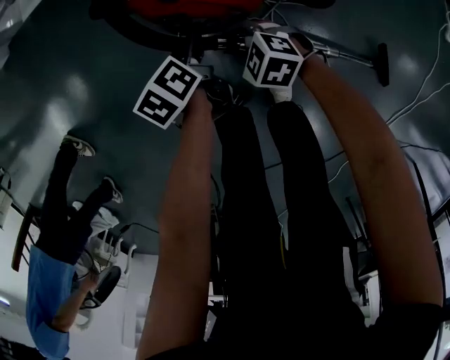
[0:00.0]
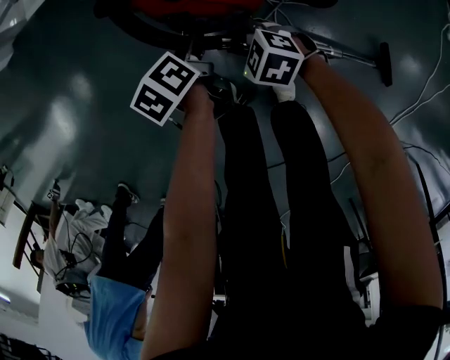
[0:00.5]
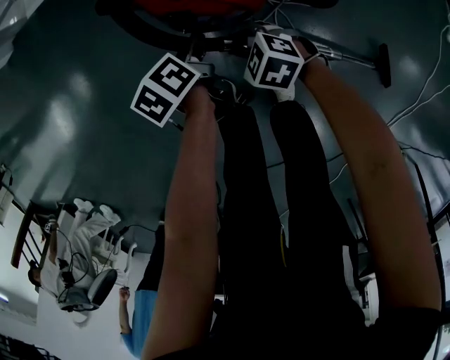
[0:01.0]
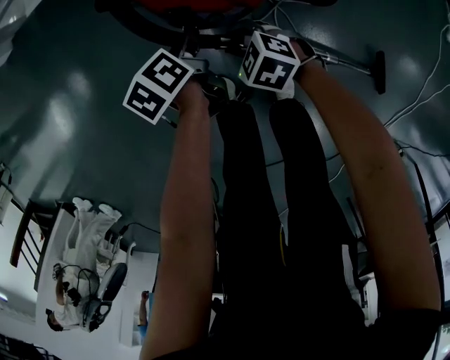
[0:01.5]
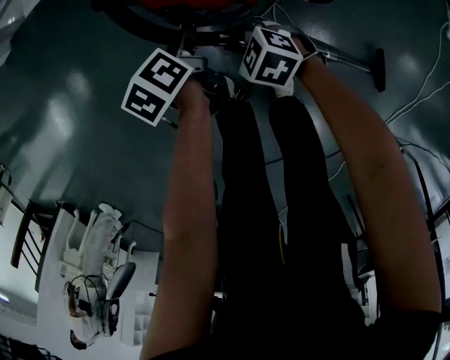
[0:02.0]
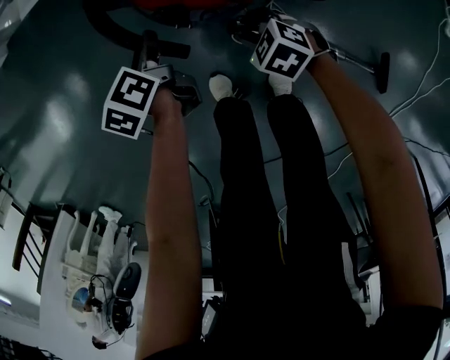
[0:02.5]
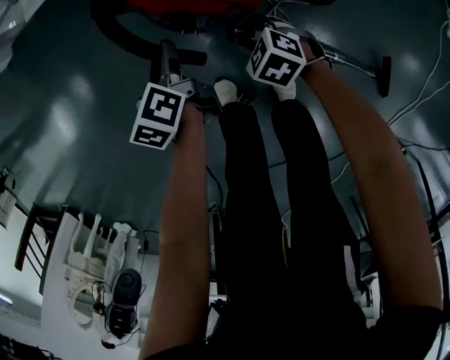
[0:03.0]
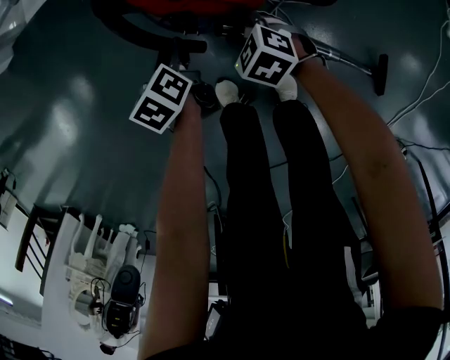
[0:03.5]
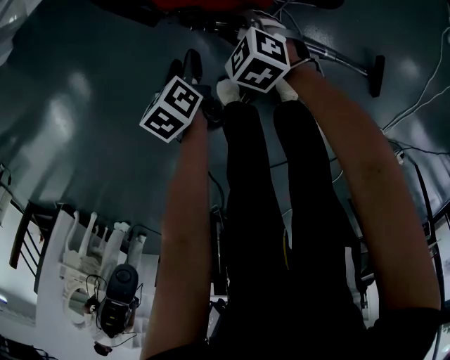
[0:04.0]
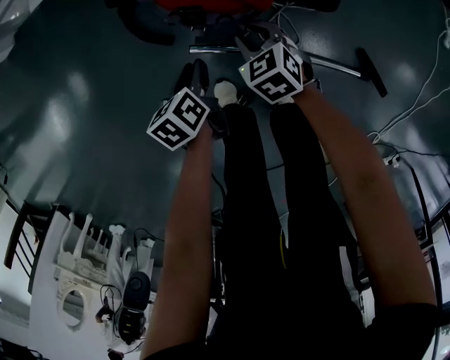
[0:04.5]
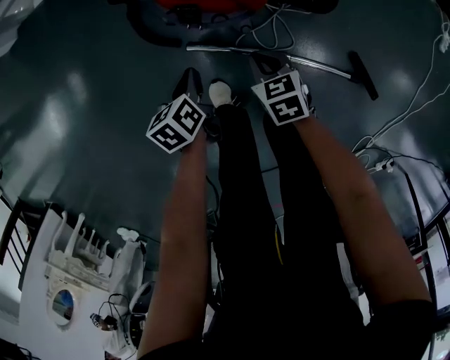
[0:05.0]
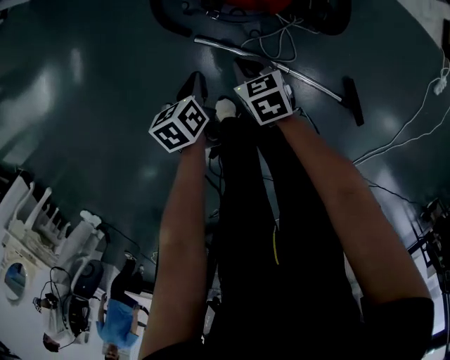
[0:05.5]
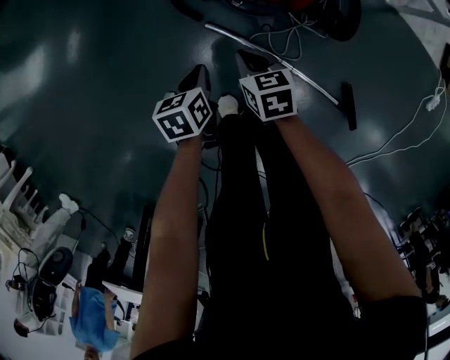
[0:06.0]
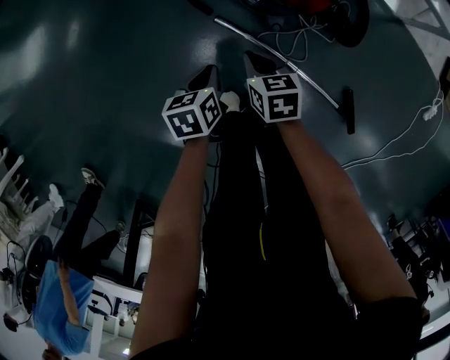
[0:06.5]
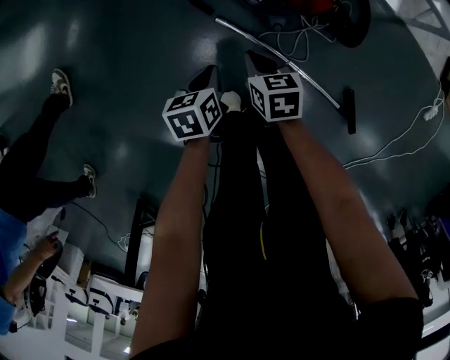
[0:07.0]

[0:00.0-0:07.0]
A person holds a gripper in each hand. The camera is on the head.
0:00.0 to 0:02.0: The grippers stay close to where they were, moving slightly.
0:03.5 to 0:05.0: The two grippers go some 10 cm backward. The left gripper closes up, while the right gripper swivels roughly 30 degrees, and closes its fingers.
0:05.0 to 0:07.0: The right gripper travels to the left by about 15 cm. The left gripper is displaced backward and to the left by about 15 cm.

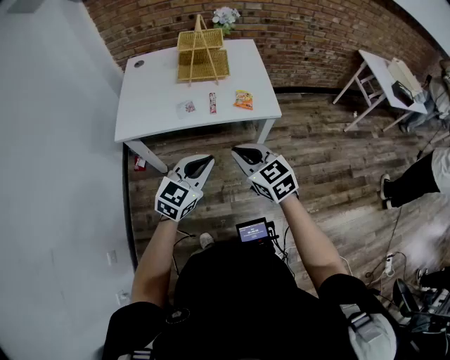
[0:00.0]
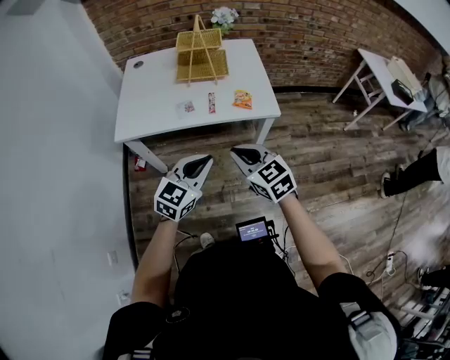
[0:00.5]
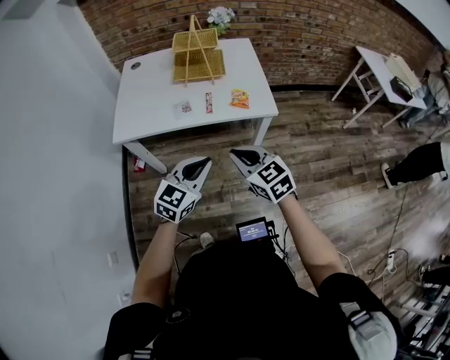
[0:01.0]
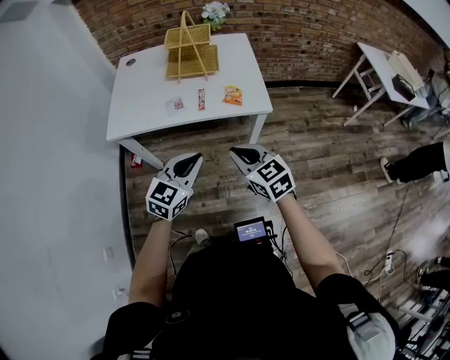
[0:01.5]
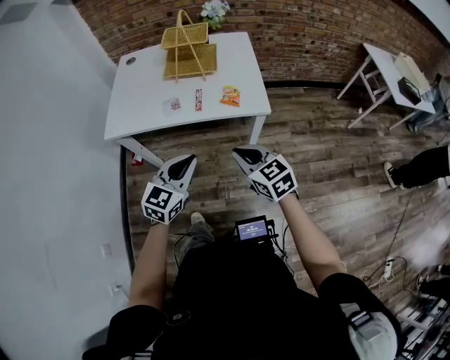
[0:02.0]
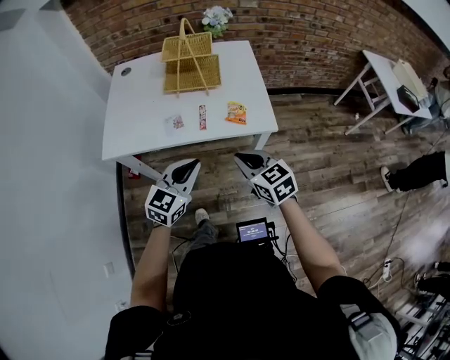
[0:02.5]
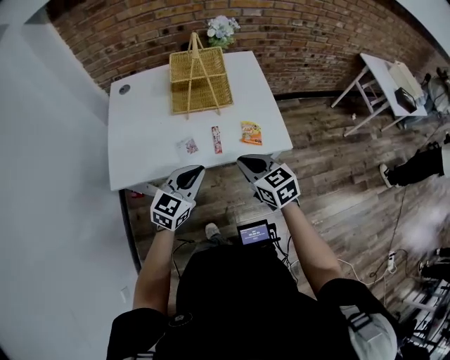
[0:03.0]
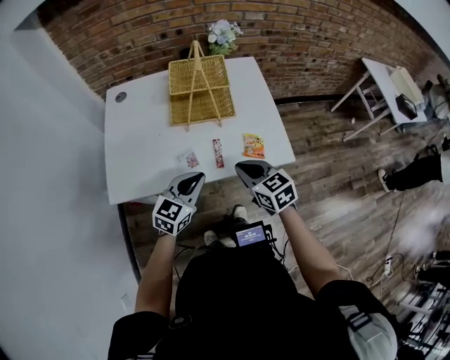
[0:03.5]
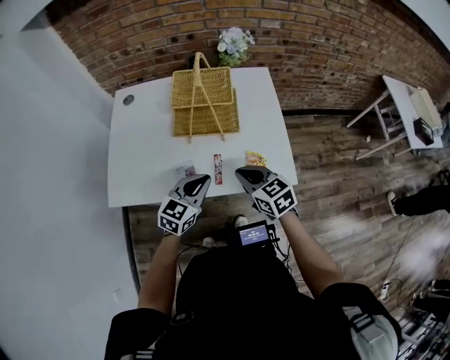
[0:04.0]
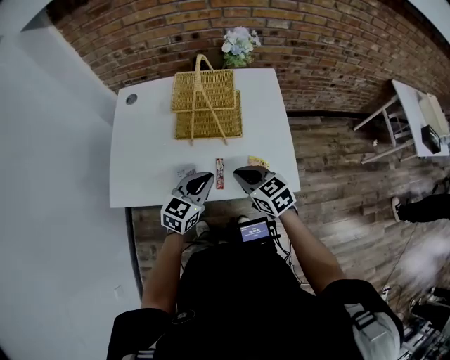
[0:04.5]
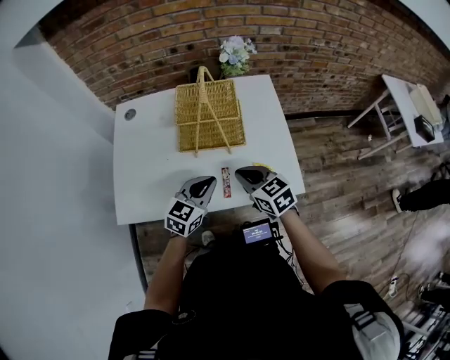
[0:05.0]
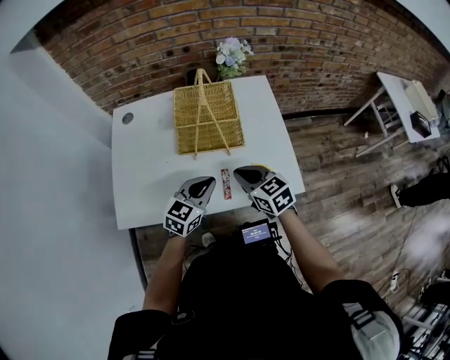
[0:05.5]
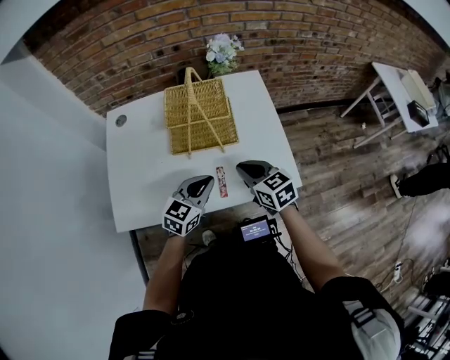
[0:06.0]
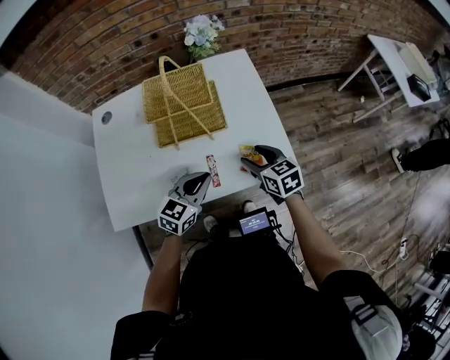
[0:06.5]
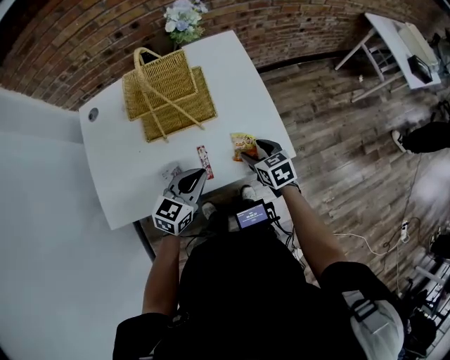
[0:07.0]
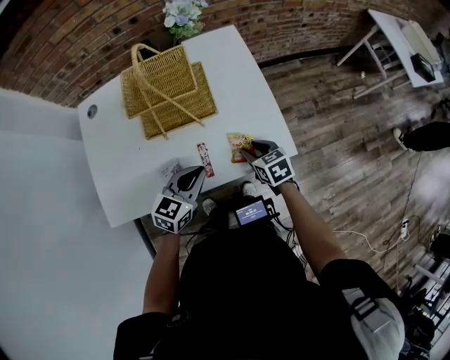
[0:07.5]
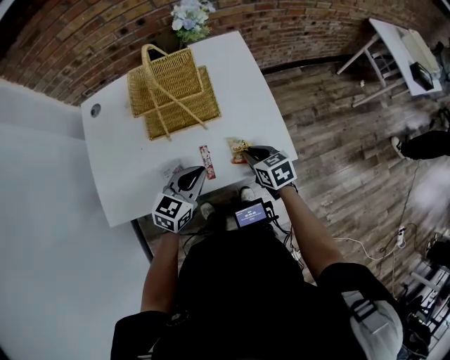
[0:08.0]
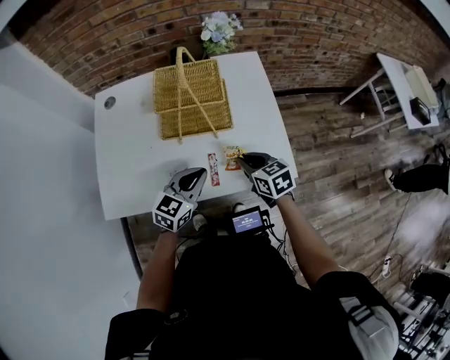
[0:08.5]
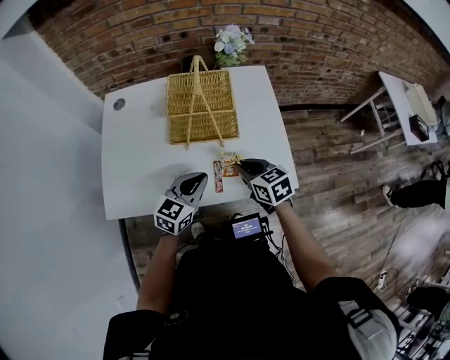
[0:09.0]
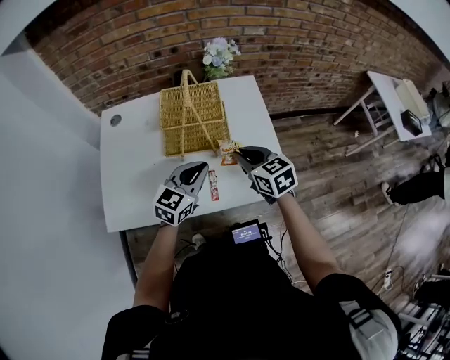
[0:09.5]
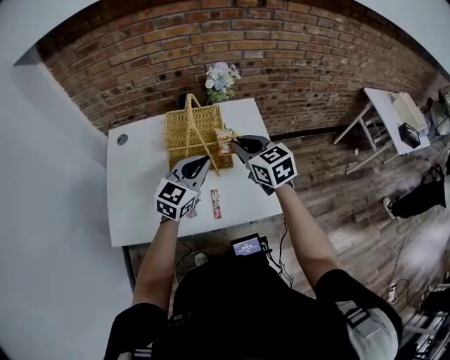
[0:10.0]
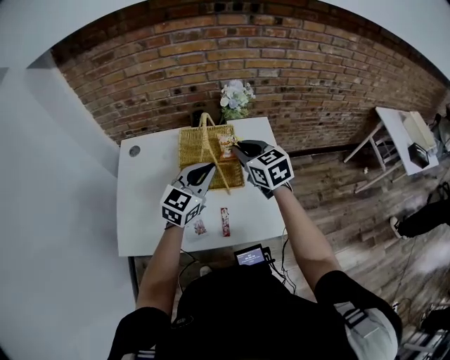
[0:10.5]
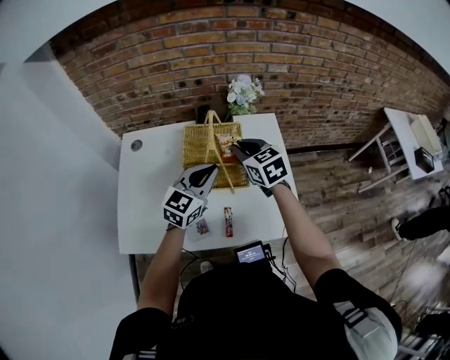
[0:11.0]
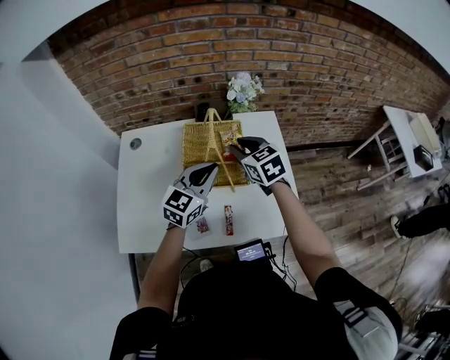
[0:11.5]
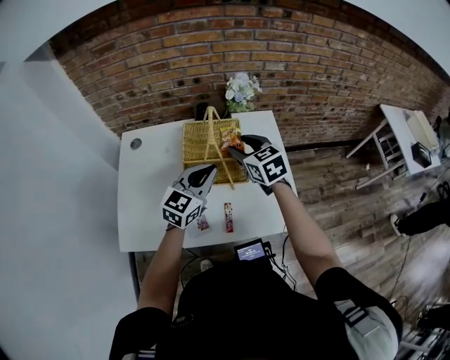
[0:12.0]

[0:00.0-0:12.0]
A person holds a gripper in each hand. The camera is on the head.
0:00.0 to 0:02.0: The right gripper moves to the right, roughly 10 cm.
0:02.0 to 0:04.0: Both grippers travel together forward, approximately 25 cm.
0:04.0 to 0:06.0: The right gripper moves forward, some 5 cm.
0:06.0 to 0:08.0: The right gripper heads downward and to the right, covering approximately 15 cm, and opens and closes again.
0:08.0 to 0:10.0: The grippers both shift upward and forward by some 20 cm. The left gripper rotates some 20 degrees. Meanwhile the right gripper changes its angle by some 30 degrees.
0:10.0 to 0:12.0: The right gripper is displaced forward and to the left by about 10 cm, and opens.

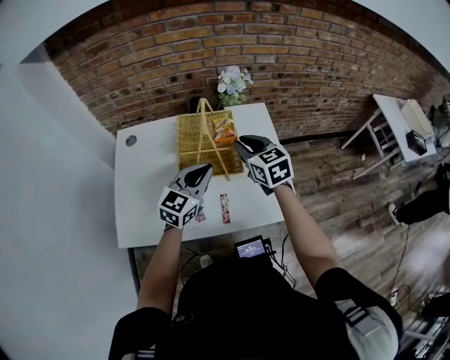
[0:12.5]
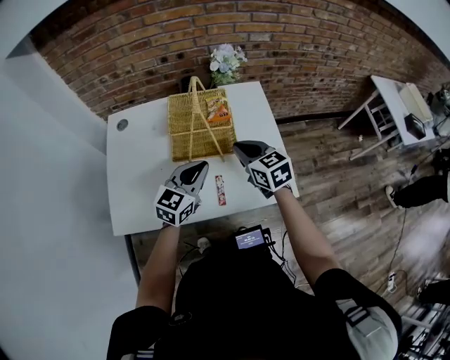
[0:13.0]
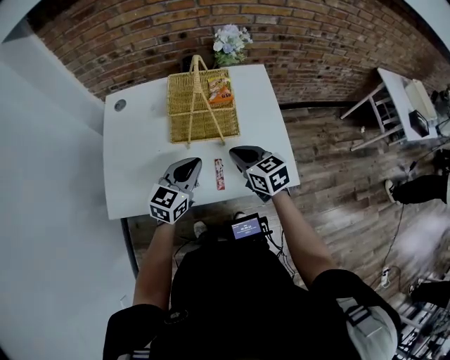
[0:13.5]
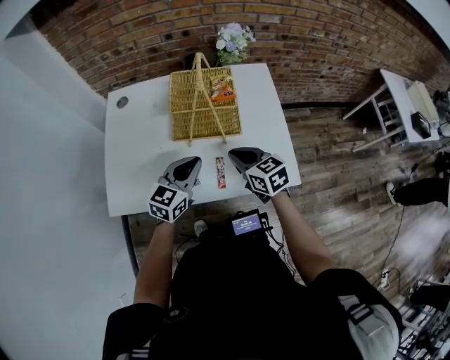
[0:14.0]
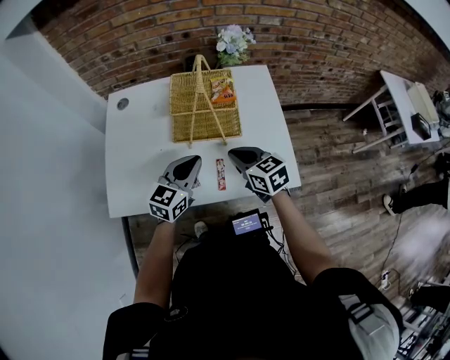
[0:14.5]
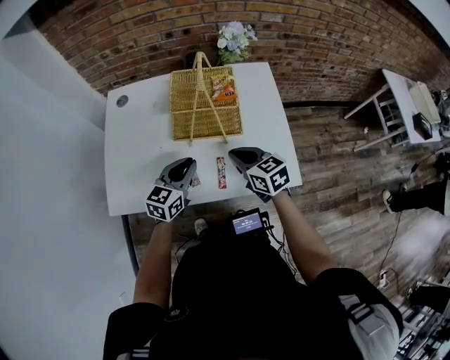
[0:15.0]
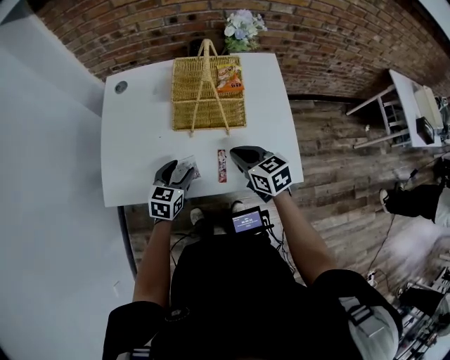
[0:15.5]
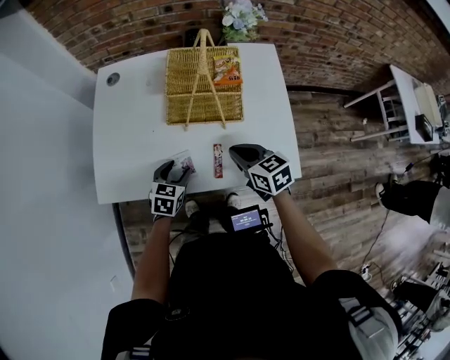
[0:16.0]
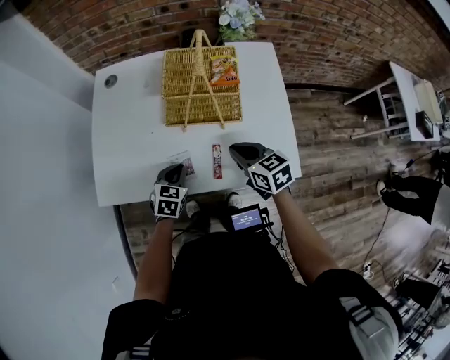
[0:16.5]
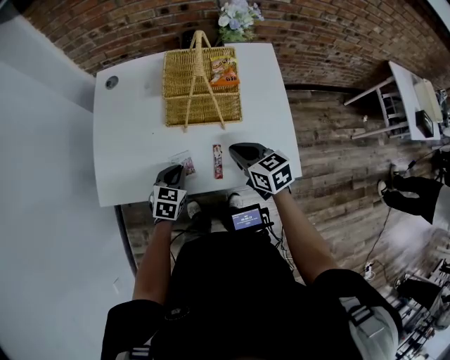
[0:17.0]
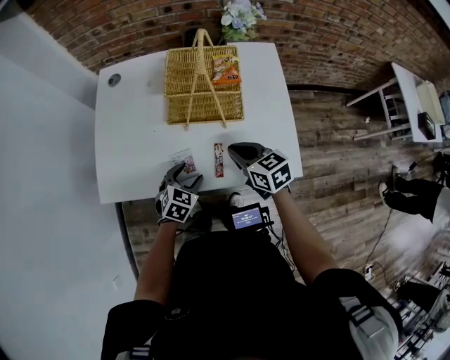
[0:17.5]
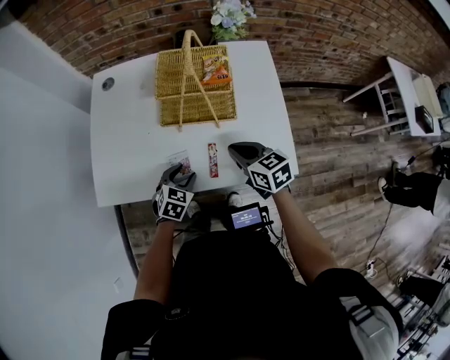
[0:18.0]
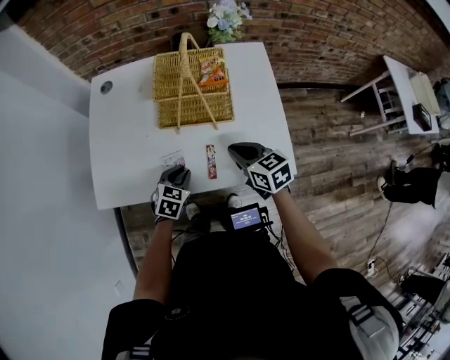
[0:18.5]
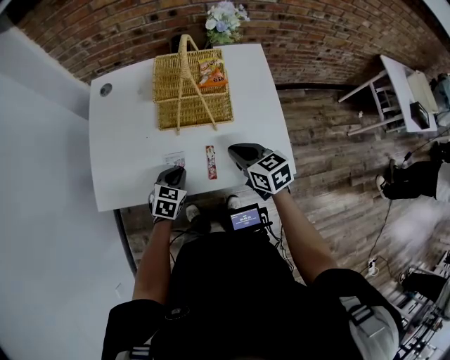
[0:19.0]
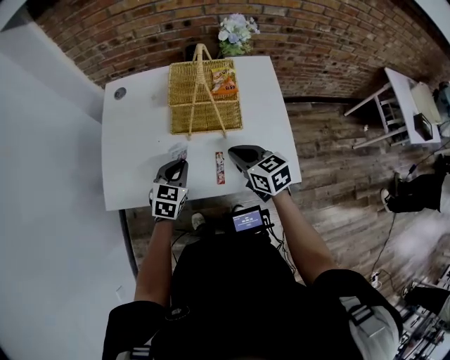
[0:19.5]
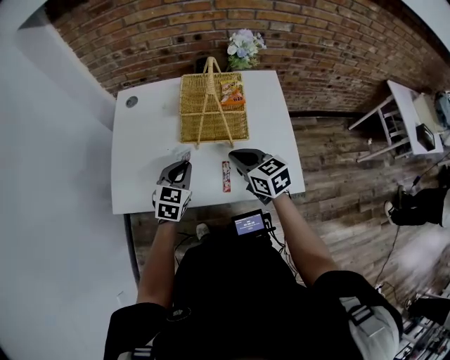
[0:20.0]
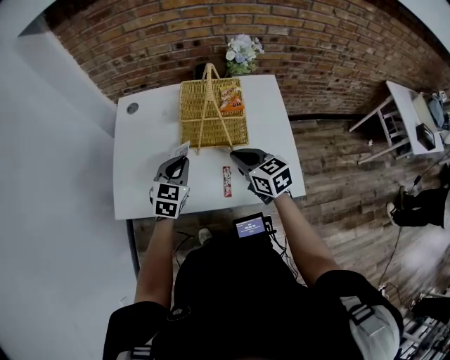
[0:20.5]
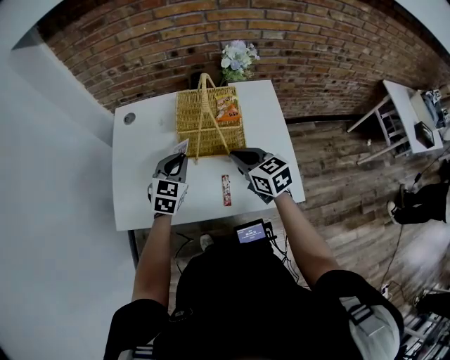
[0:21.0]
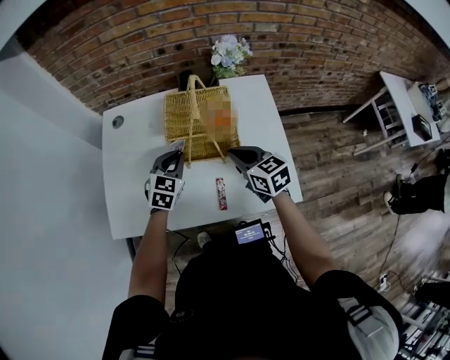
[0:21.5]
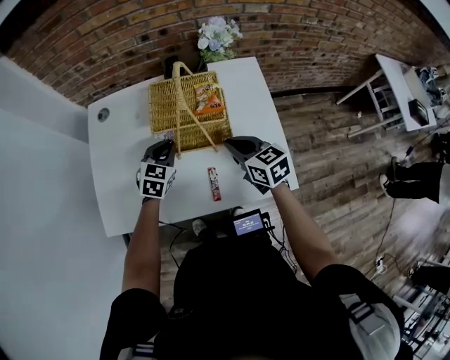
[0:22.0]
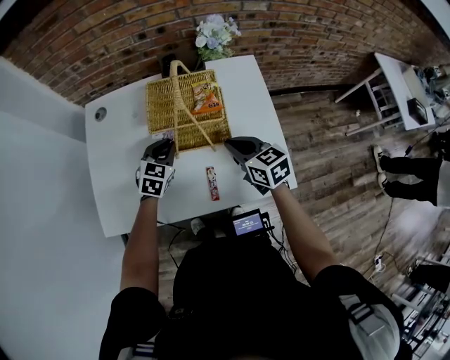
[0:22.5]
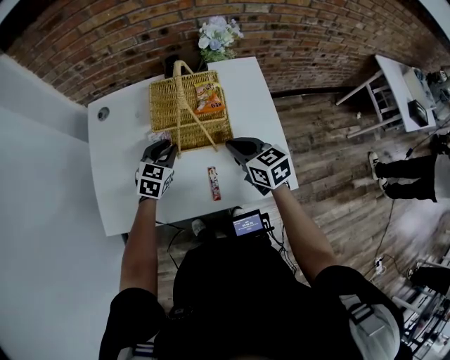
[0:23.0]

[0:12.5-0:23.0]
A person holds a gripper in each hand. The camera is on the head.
0:12.5 to 0:14.5: The right gripper moves backward and downward, some 15 cm, while the left gripper heads downward and backward, covering approximately 10 cm.
0:14.5 to 0:16.5: The left gripper is displaced downward by some 15 cm, tips its fingers downward by approximately 30 degrees, and opens, then closes again.
0:16.5 to 0:19.0: The left gripper opens, then closes again.
0:19.0 to 0:21.0: The right gripper is displaced forward and upward by about 10 cm. Meanwhile the left gripper heads upward and forward, covering some 20 cm, and rotates some 20 degrees.
0:21.0 to 0:23.0: The left gripper is displaced downward by about 10 cm; the right gripper shifts by approximately 5 cm.
